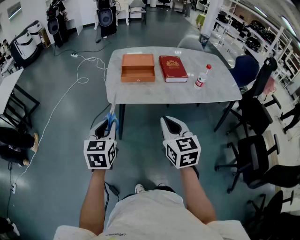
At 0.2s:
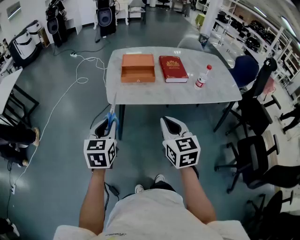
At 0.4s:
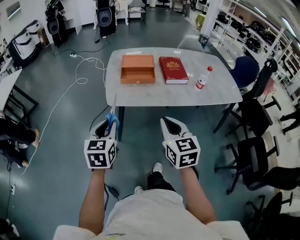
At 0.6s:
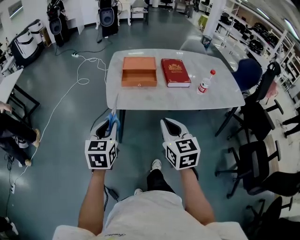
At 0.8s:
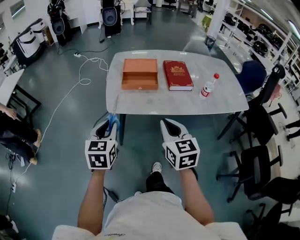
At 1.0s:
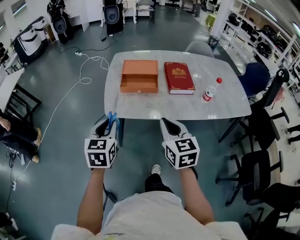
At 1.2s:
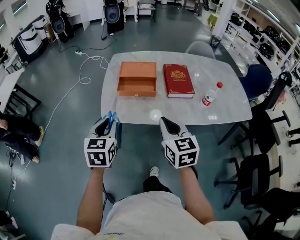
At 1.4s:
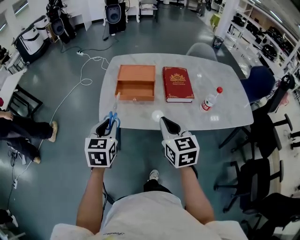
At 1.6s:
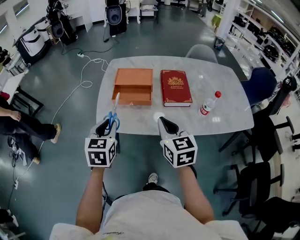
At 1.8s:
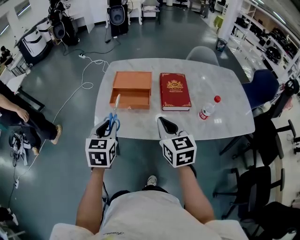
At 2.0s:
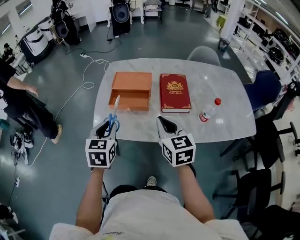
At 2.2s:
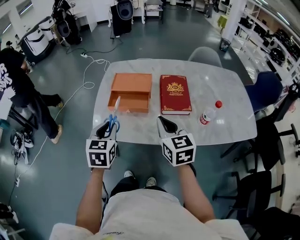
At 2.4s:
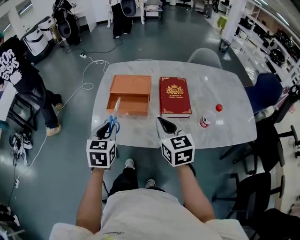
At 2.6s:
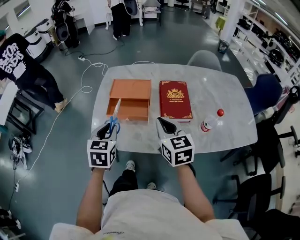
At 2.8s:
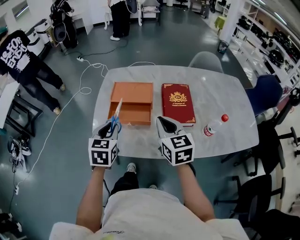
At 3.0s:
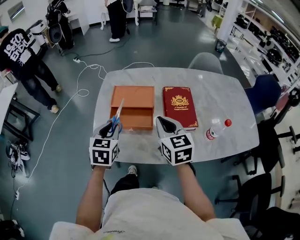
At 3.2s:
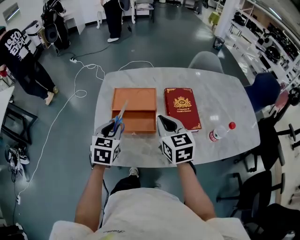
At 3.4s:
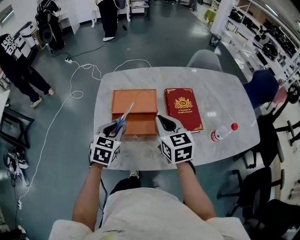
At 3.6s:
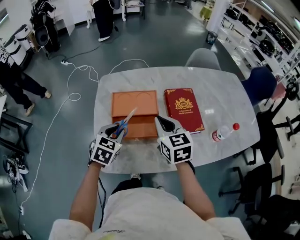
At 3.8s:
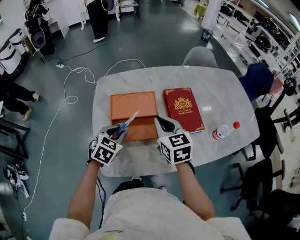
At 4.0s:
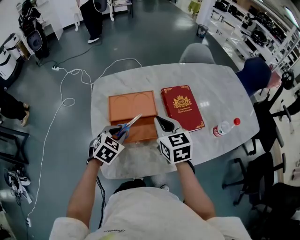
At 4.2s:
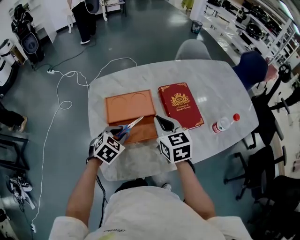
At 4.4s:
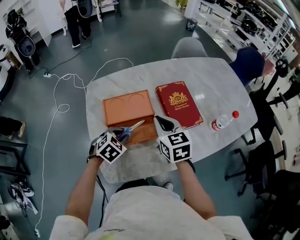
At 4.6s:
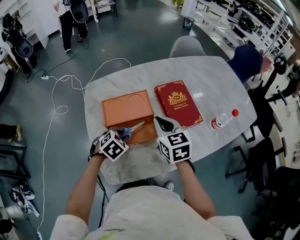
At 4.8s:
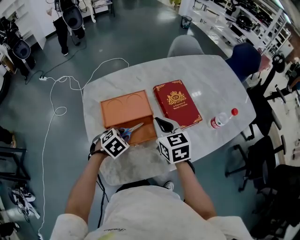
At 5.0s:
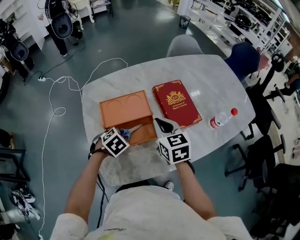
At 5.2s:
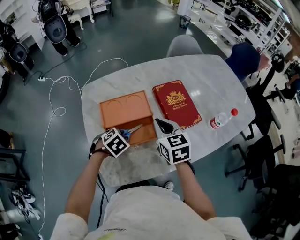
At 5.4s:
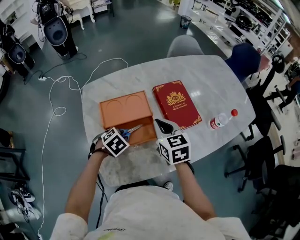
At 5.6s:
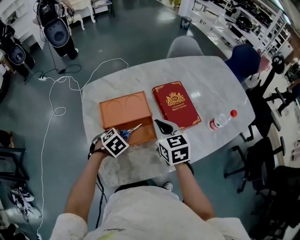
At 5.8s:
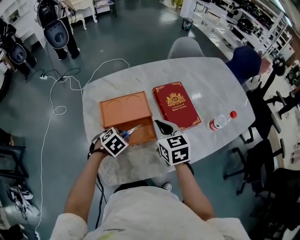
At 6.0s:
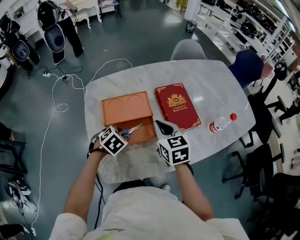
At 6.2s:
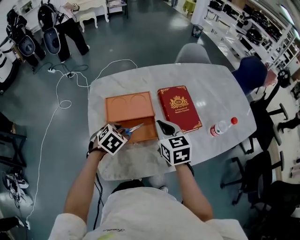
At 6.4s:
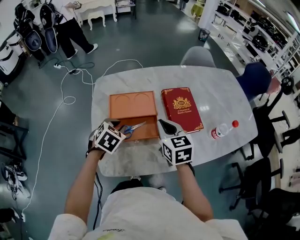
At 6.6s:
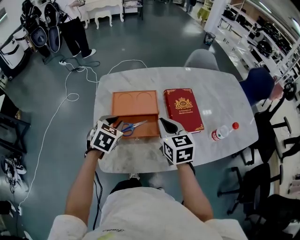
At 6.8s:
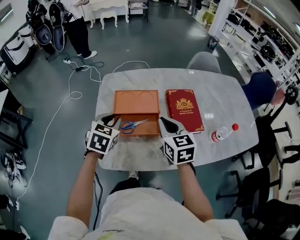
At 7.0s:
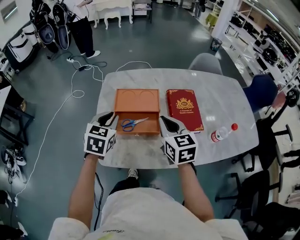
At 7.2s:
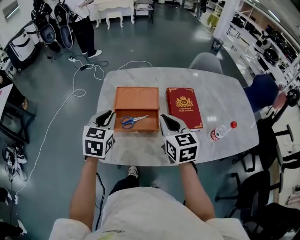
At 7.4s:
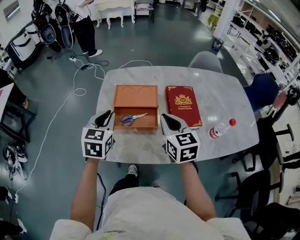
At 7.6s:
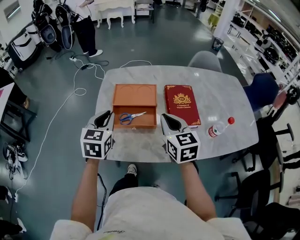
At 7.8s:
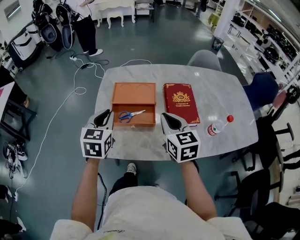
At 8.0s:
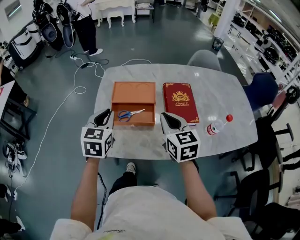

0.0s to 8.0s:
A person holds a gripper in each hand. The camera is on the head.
0.0s to 1.6s: The grippers both shift forward and to the right by approximately 25 cm.
1.6s to 3.2s: The grippers both shift forward by some 20 cm.
3.2s to 4.8s: The left gripper is displaced downward by approximately 10 cm, and tilts its fingers roughly 30 degrees downward. The right gripper shifts roughly 5 cm downward.
4.8s to 6.4s: The left gripper moves upward, some 5 cm, and rotates roughly 20 degrees.
6.4s to 8.0s: The left gripper shifts roughly 15 cm upward and backward, and rotates roughly 40 degrees. The right gripper goes about 10 cm backward and upward.

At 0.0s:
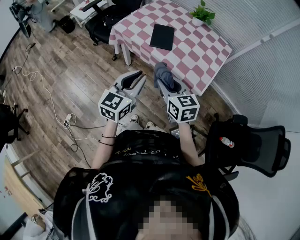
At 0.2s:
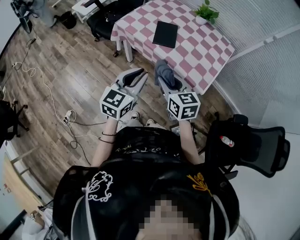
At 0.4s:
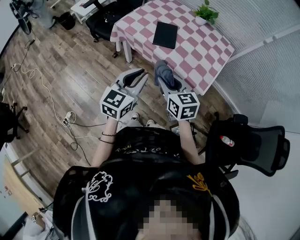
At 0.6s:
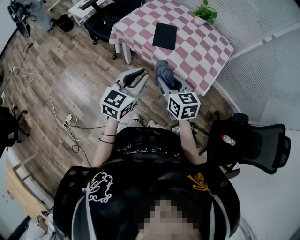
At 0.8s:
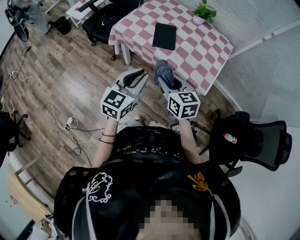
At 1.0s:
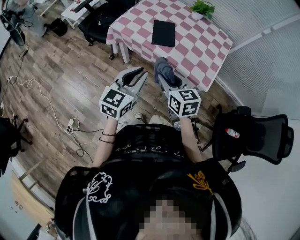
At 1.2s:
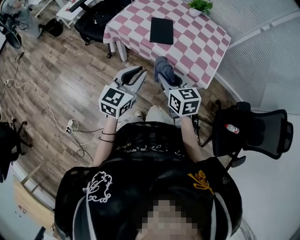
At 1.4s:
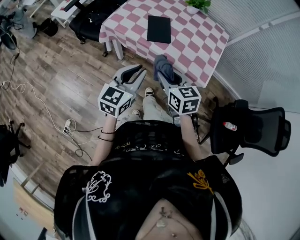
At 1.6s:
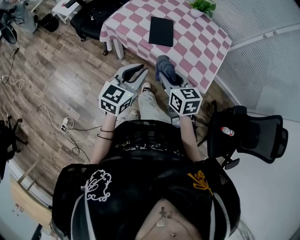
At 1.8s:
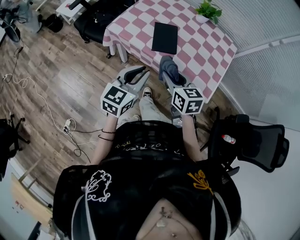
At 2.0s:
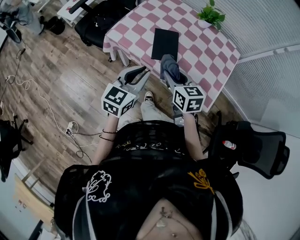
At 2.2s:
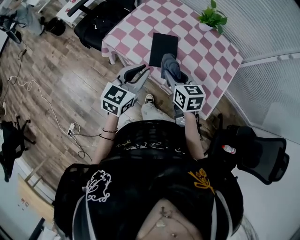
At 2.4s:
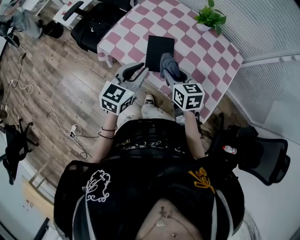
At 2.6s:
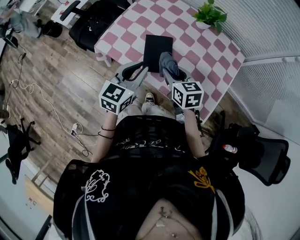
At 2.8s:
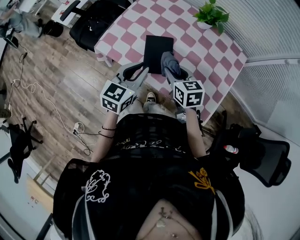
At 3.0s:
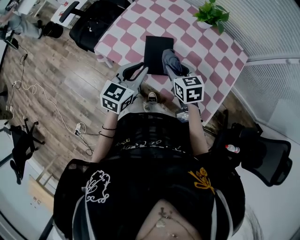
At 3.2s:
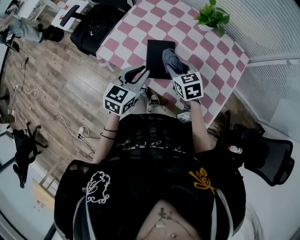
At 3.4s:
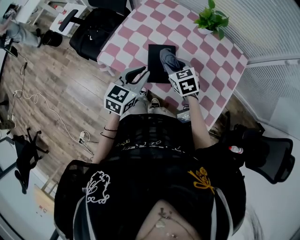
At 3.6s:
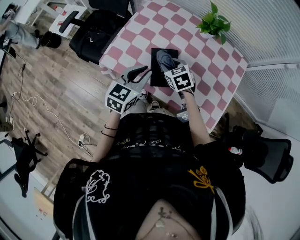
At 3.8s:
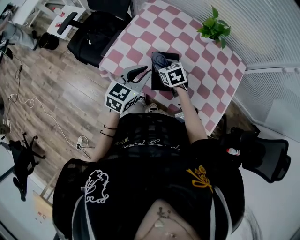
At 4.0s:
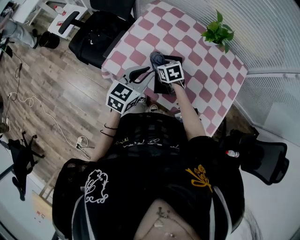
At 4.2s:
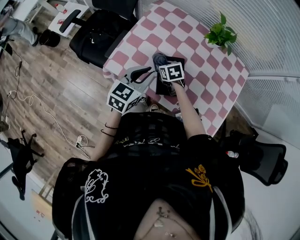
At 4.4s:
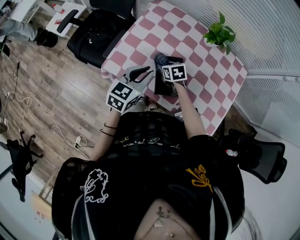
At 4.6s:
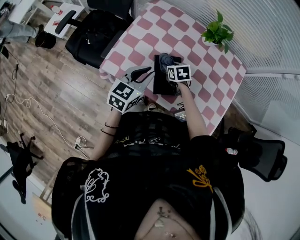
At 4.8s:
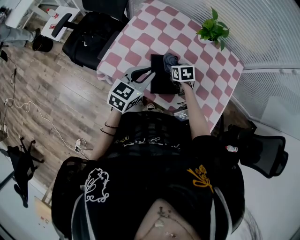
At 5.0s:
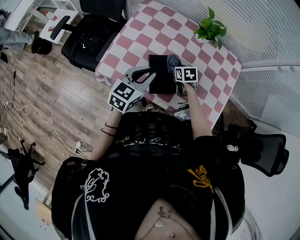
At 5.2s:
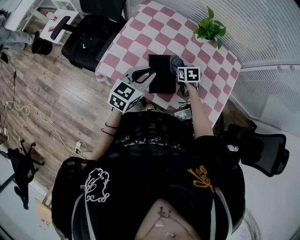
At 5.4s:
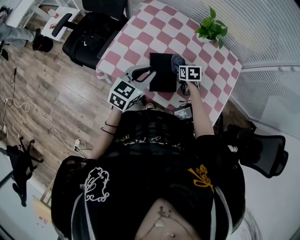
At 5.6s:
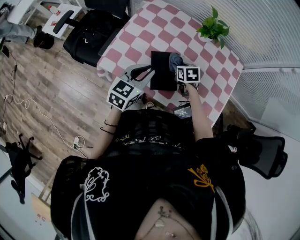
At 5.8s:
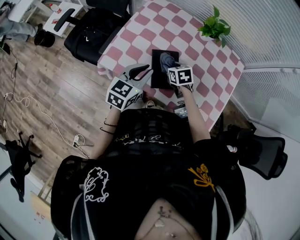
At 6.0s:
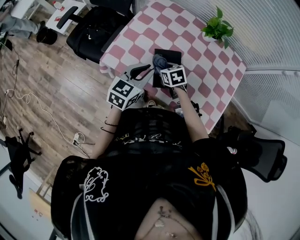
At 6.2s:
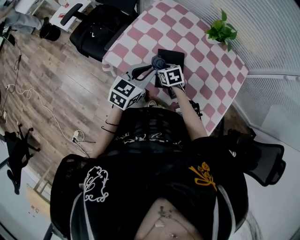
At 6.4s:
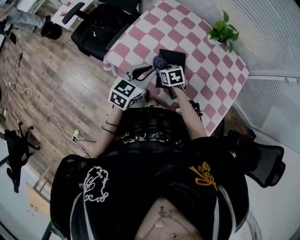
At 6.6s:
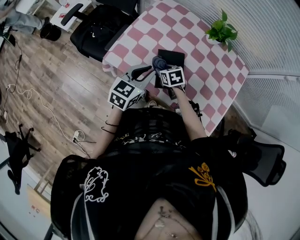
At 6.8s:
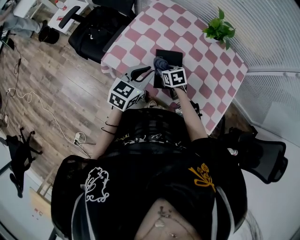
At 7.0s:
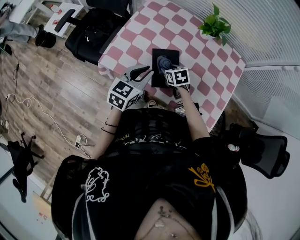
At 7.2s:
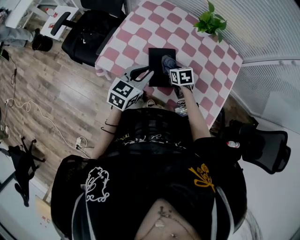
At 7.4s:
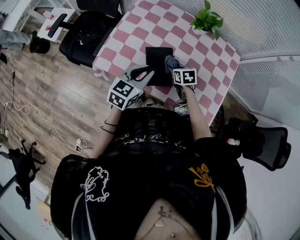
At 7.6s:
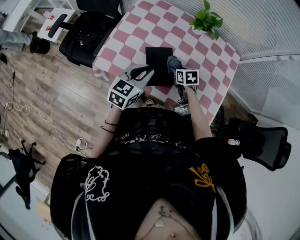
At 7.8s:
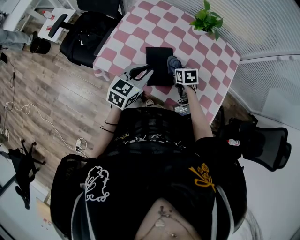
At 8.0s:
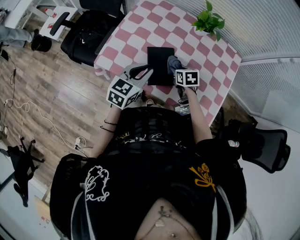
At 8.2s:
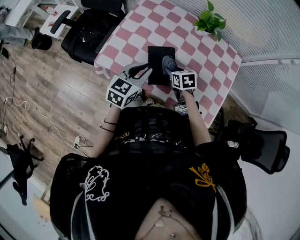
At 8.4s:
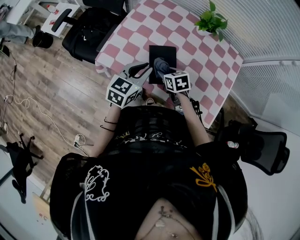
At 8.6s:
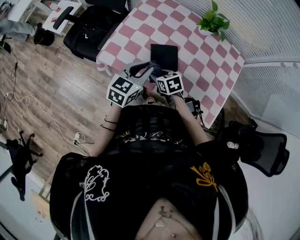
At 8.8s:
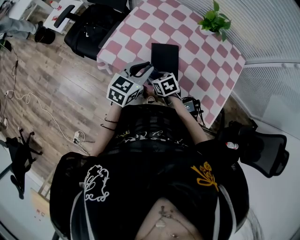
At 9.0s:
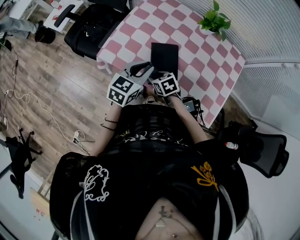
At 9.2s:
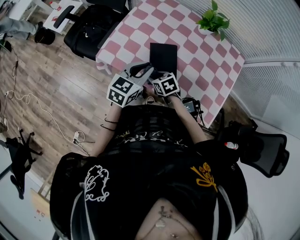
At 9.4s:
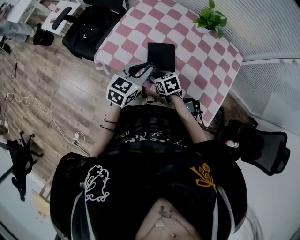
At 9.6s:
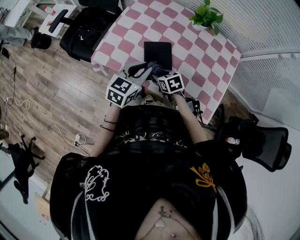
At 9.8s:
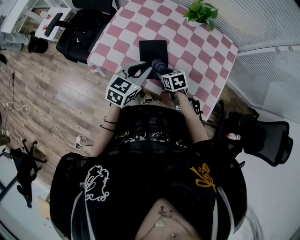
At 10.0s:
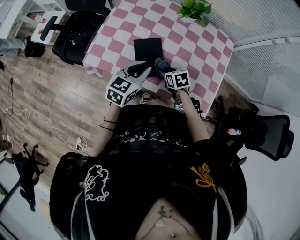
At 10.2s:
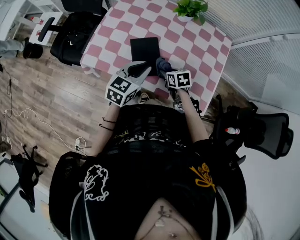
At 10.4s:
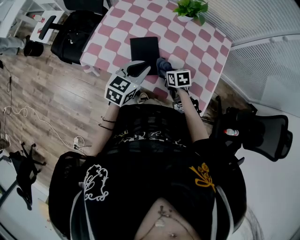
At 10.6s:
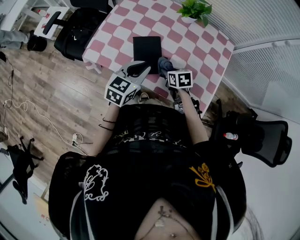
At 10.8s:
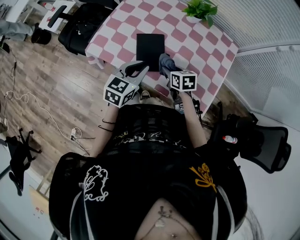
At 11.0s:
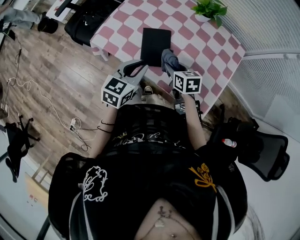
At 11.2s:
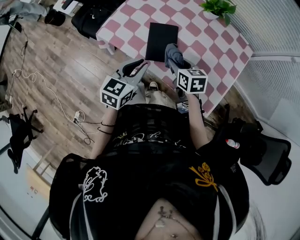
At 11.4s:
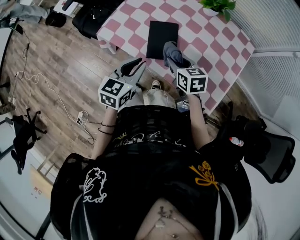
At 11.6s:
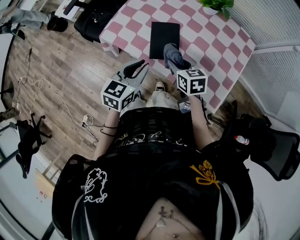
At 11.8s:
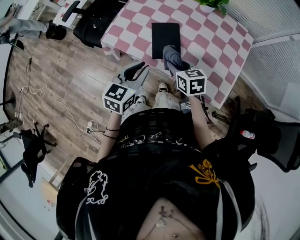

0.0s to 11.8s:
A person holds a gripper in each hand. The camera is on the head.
0.0s to 1.4s: The two grippers go roughly 5 cm forward.
1.4s to 3.0s: Both grippers move forward, roughly 30 cm.
3.0s to 4.4s: The left gripper travels forward and to the left by some 10 cm, while the right gripper goes approximately 20 cm downward, forward and to the left.
4.4s to 6.0s: The right gripper goes roughly 5 cm backward, and moves approximately 15 cm to the right and comes back.
6.0s to 7.4s: The right gripper is displaced to the right by approximately 10 cm.
7.4s to 8.8s: The right gripper shifts some 15 cm to the left and backward, and rotates roughly 20 degrees.
8.8s to 10.4s: The left gripper travels to the right by about 10 cm; the right gripper heads to the right, covering approximately 15 cm, and changes its angle by about 20 degrees.
10.4s to 11.8s: The left gripper moves backward and to the left, some 10 cm; the right gripper travels upward, to the left and backward by roughly 15 cm.

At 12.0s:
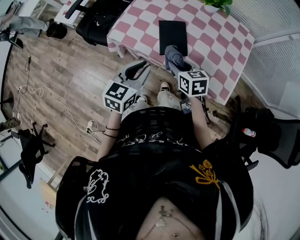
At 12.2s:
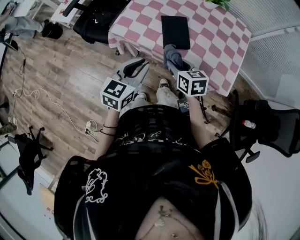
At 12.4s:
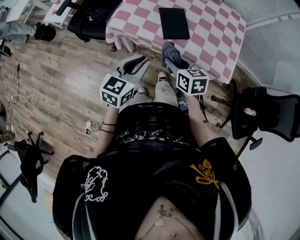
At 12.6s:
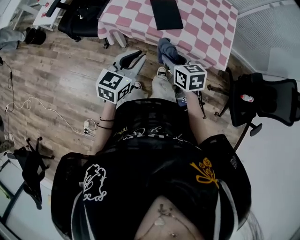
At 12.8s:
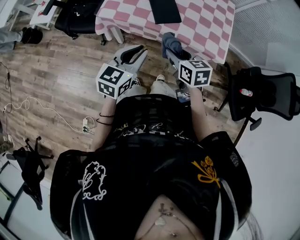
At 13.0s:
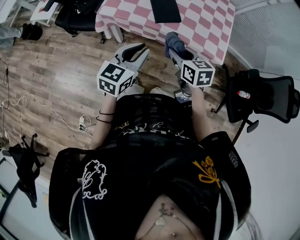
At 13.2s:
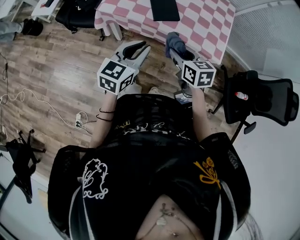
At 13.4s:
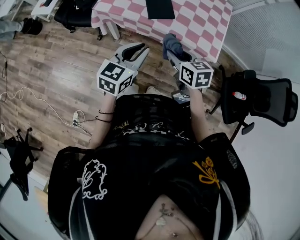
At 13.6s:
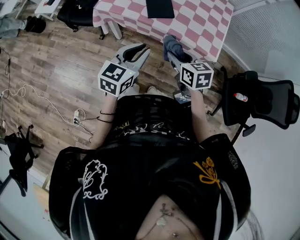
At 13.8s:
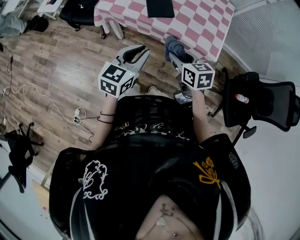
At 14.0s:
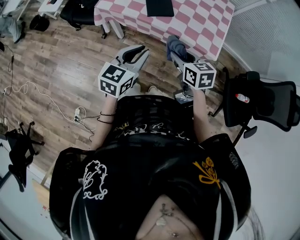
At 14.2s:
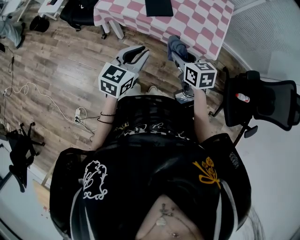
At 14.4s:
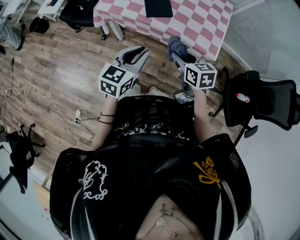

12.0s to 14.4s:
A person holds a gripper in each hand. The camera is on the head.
12.0s to 13.2s: The grippers both shift backward by roughly 15 cm.
13.2s to 14.4s: The grippers both shift to the right by roughly 5 cm.

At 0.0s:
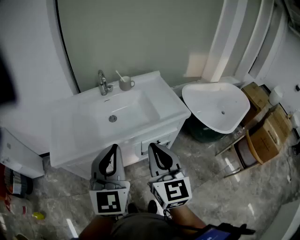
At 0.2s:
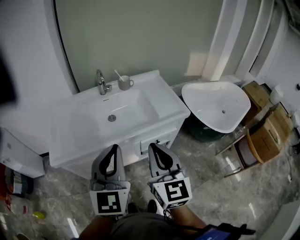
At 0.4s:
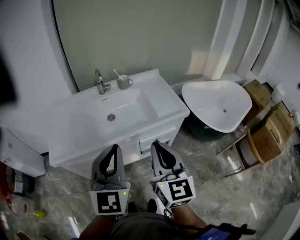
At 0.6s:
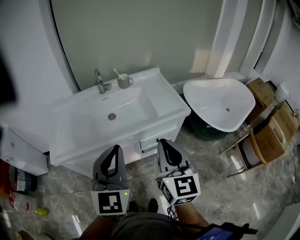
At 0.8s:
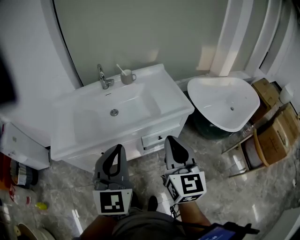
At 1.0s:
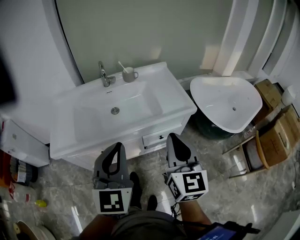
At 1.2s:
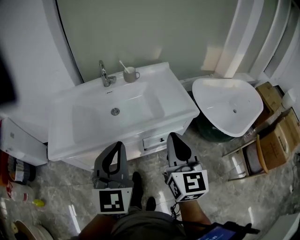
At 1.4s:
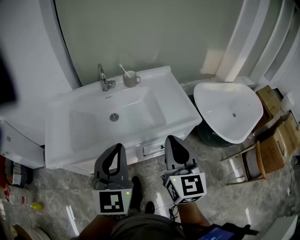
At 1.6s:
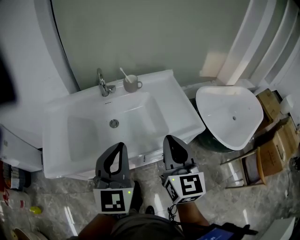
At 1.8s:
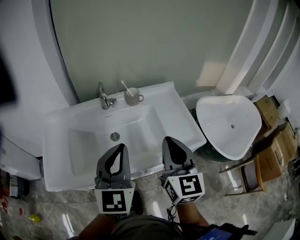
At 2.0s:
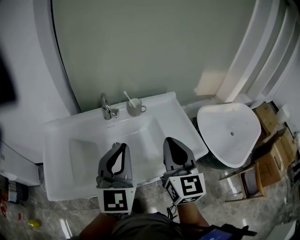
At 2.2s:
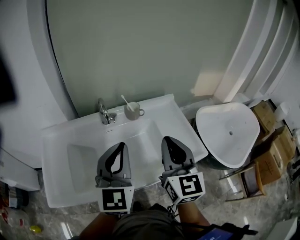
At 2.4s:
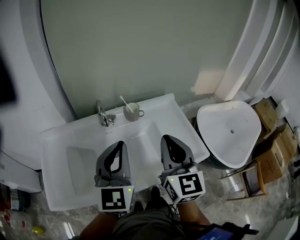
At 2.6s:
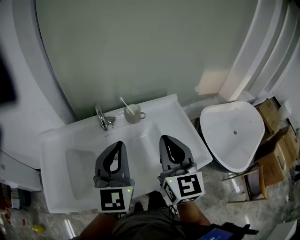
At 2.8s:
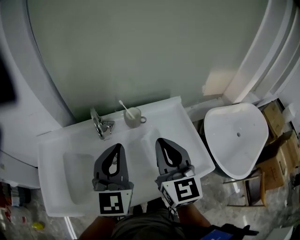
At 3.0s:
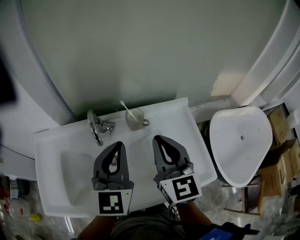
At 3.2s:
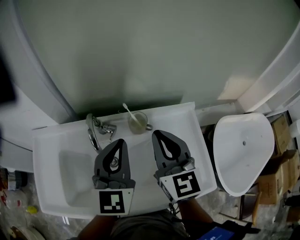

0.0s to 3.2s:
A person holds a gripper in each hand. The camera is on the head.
0.0s to 1.6s: Both grippers move forward, approximately 15 cm.
1.6s to 3.2s: Both grippers travel together forward, about 35 cm.
